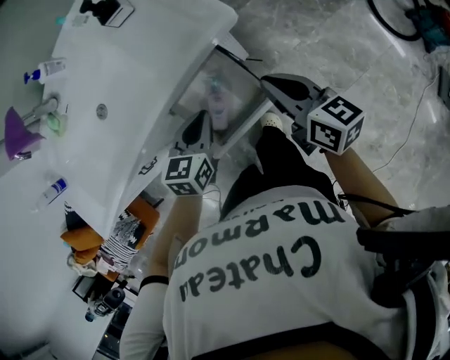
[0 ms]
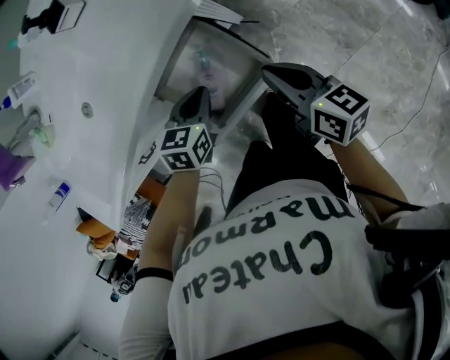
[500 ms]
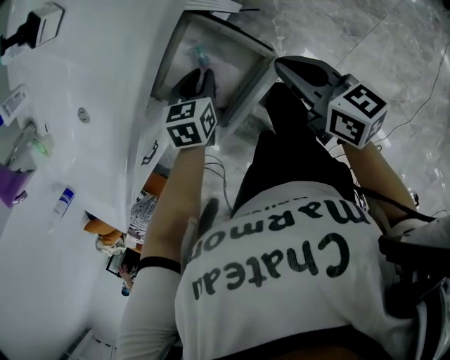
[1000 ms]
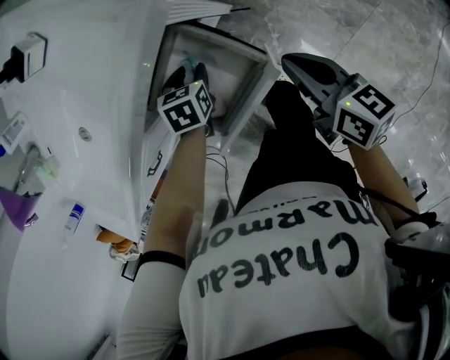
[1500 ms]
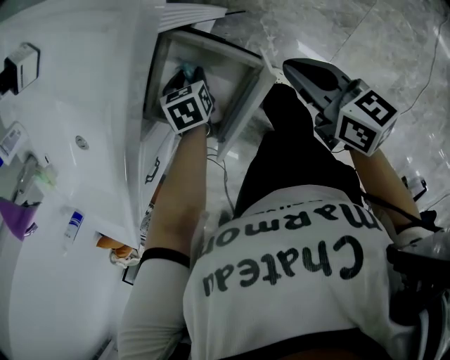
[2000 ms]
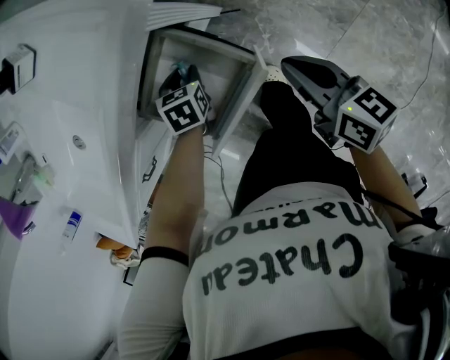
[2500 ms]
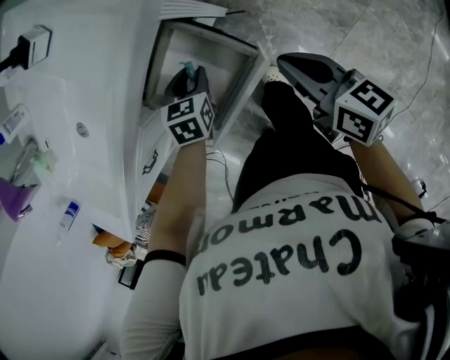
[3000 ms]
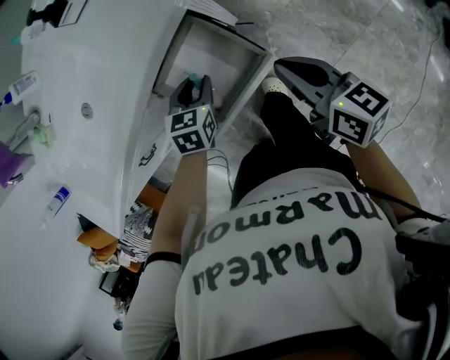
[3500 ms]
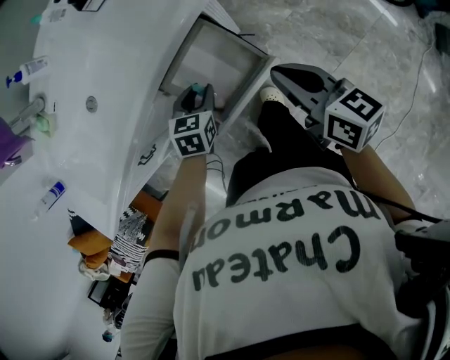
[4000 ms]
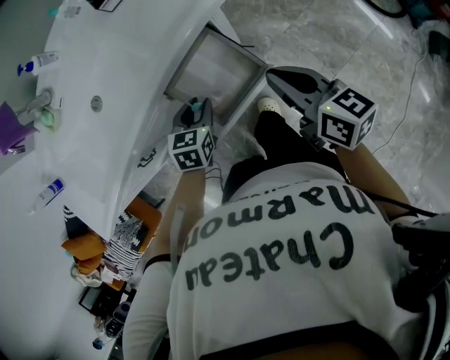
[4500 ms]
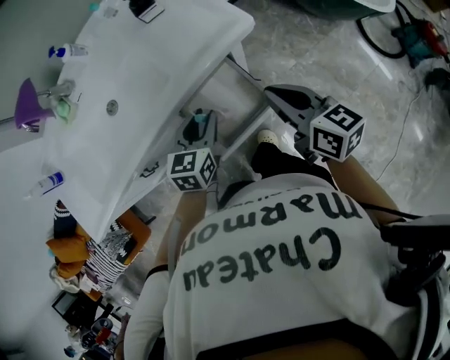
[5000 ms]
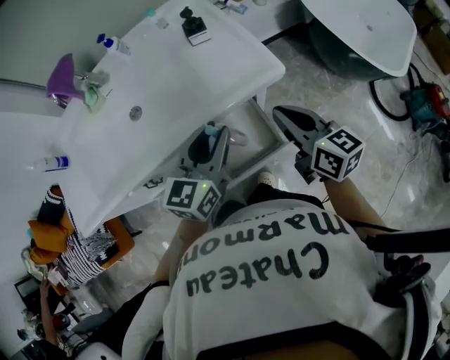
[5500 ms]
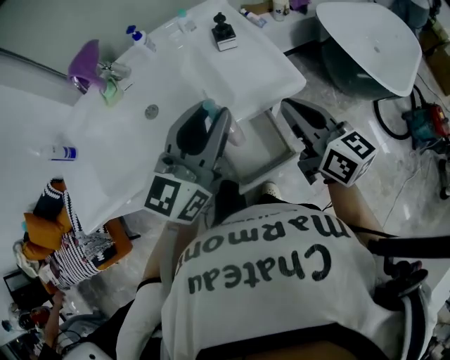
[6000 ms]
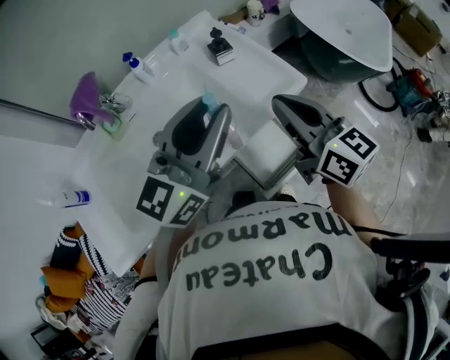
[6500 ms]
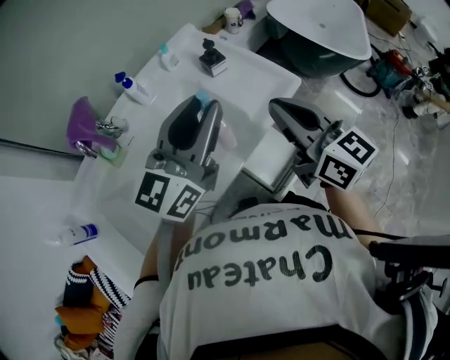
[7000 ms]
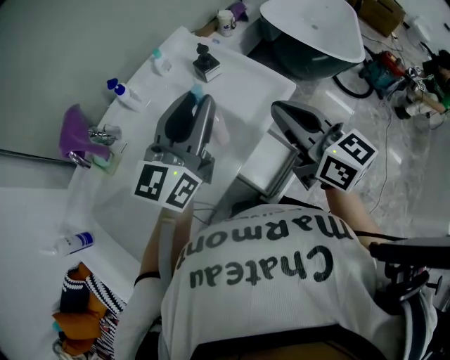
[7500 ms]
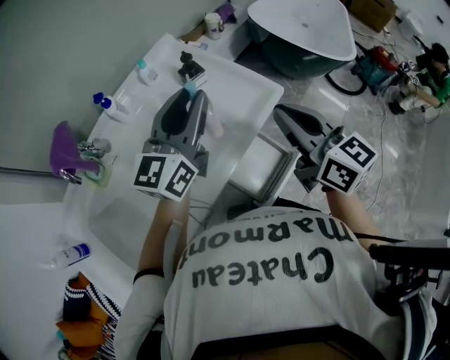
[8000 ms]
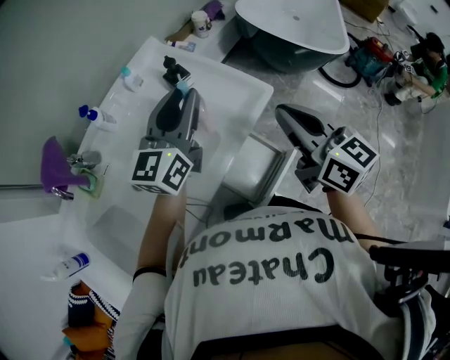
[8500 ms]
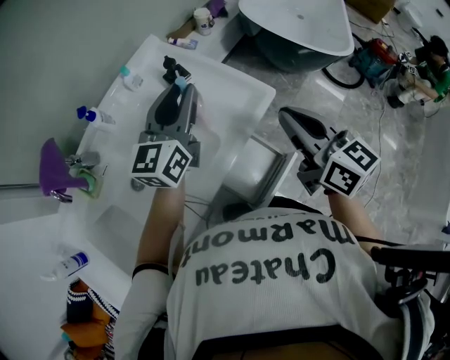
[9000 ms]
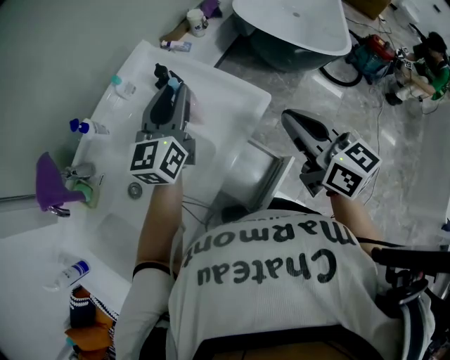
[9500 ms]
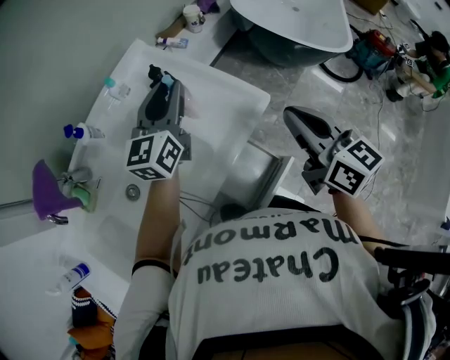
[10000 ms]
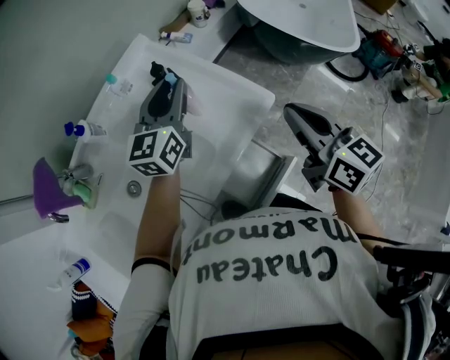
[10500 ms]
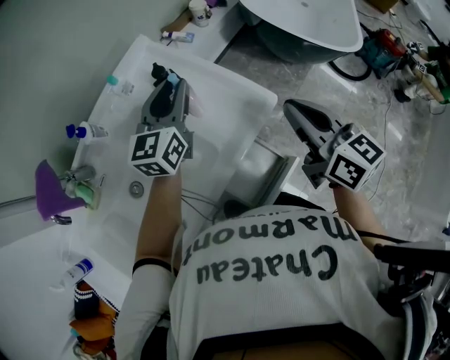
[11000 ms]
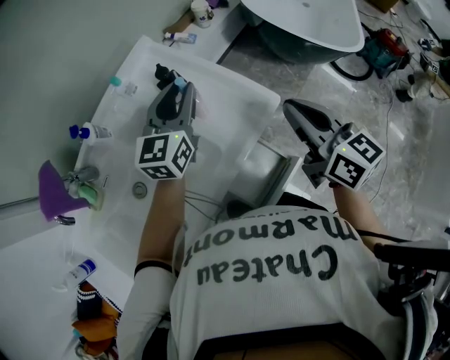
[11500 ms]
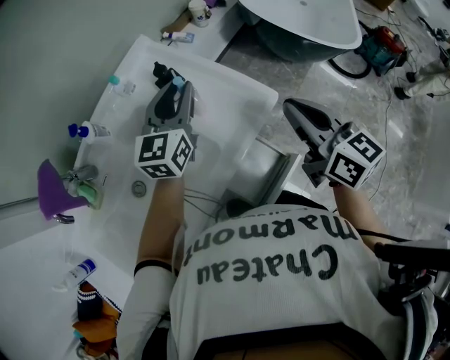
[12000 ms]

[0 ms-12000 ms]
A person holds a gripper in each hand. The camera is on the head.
0 ms to 2000 ms: The left gripper heads downward, covering some 20 cm, angles its fingers downward, by some 30 degrees, and opens; the right gripper moves downward and to the right, approximately 15 cm.
2000 ms to 4000 ms: The left gripper heads upward and backward, covering some 15 cm, and rotates roughly 20 degrees. Meanwhile the right gripper goes about 15 cm upward and to the left.
4000 ms to 6000 ms: The left gripper travels upward by about 40 cm, and tilts its fingers about 60 degrees upward. The right gripper heads upward, forward and to the left, covering some 20 cm, and turns by roughly 20 degrees.
6000 ms to 8000 ms: The right gripper heads upward, covering some 5 cm, and swivels some 20 degrees, while the left gripper shifts roughly 15 cm forward and to the left.
8000 ms to 10000 ms: The right gripper goes approximately 10 cm to the right and forward. Meanwhile the left gripper goes about 15 cm forward and downward.
10000 ms to 12000 ms: The grippers make only small movements.

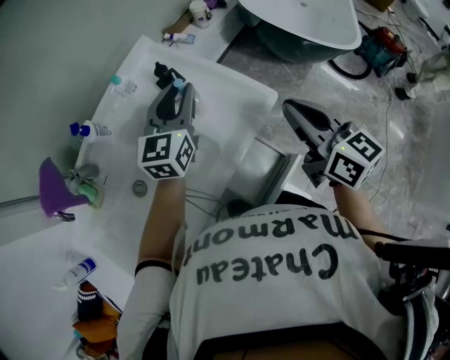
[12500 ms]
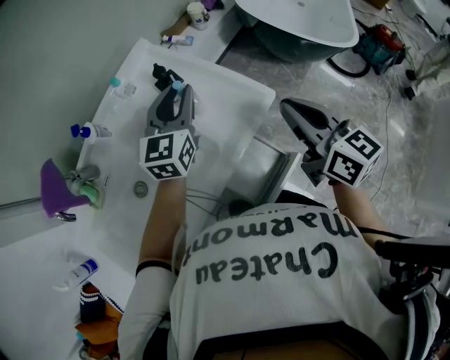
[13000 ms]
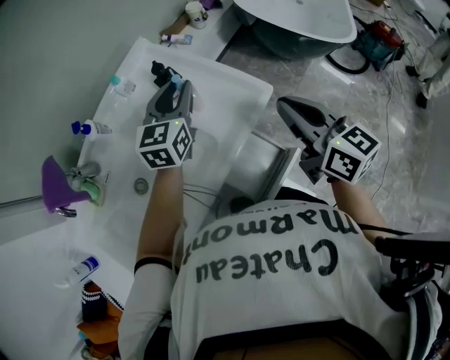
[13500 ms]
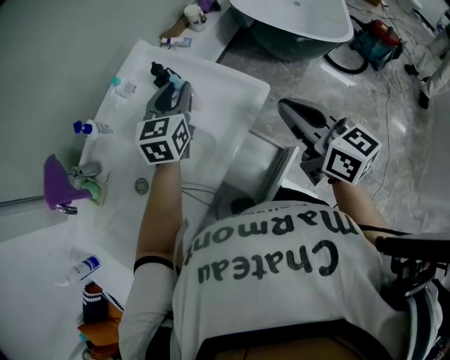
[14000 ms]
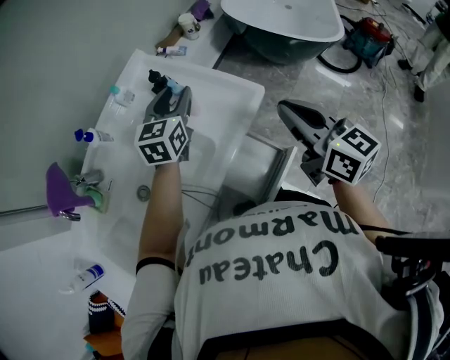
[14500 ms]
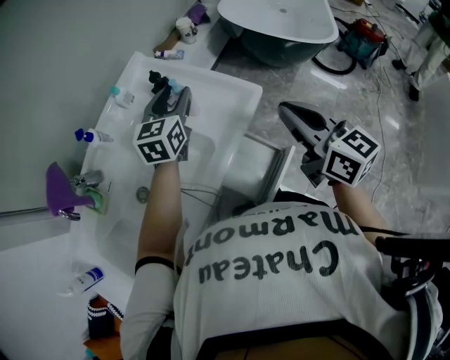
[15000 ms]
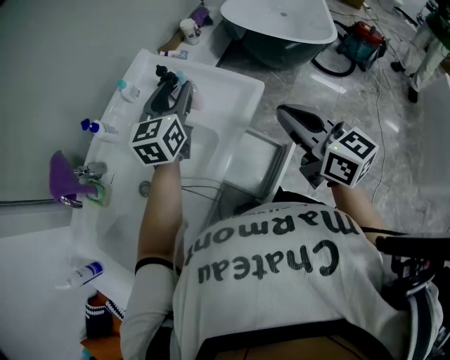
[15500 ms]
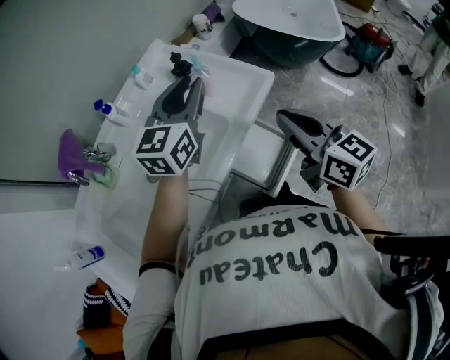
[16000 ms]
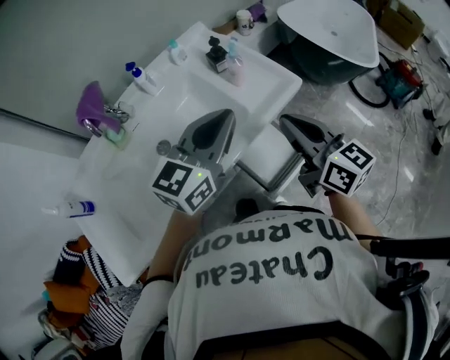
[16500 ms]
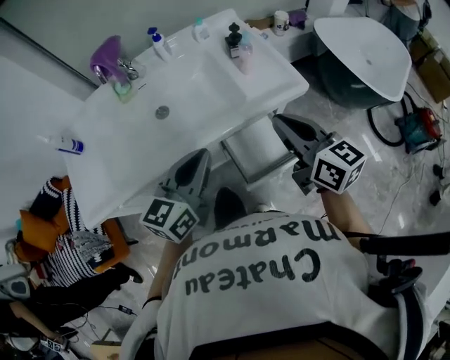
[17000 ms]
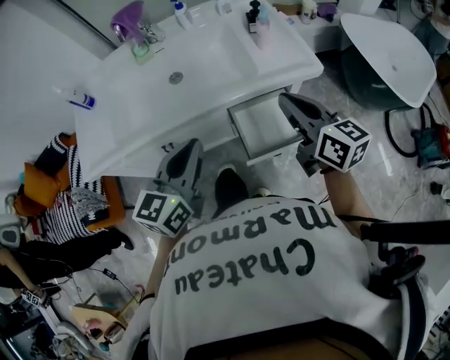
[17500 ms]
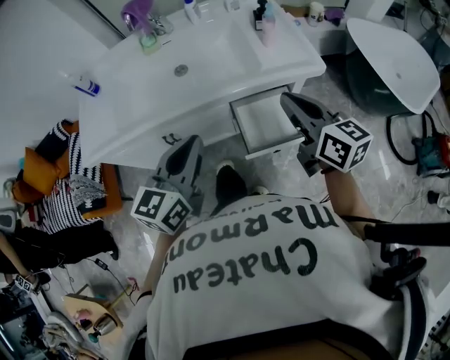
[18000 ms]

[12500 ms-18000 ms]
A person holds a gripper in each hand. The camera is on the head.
12500 ms to 14500 ms: The right gripper ends up roughly 5 cm from where it was.
14500 ms to 16000 ms: The right gripper is displaced backward and to the left by some 10 cm. The left gripper travels backward and upward by roughly 15 cm.
16000 ms to 18000 ms: The left gripper ends up about 35 cm from where it was, turns by some 40 degrees, and closes its fingers; the right gripper shifts by some 5 cm, and changes its angle by about 40 degrees.

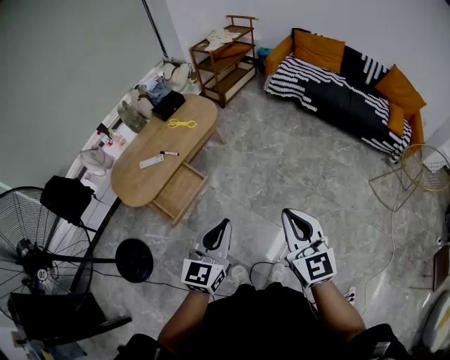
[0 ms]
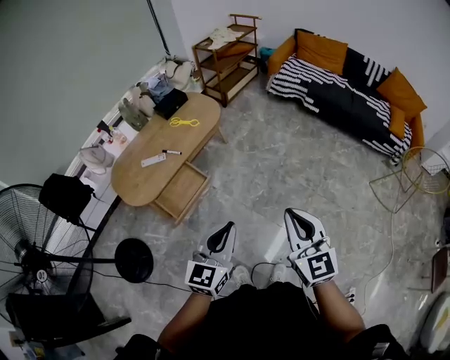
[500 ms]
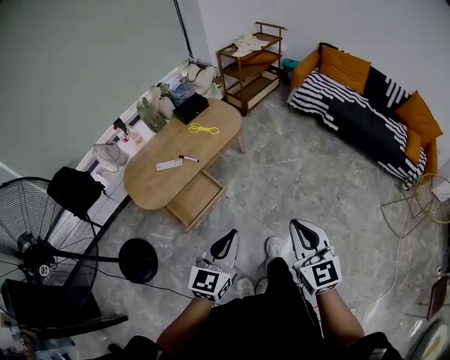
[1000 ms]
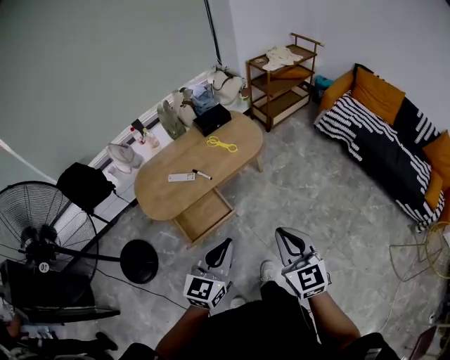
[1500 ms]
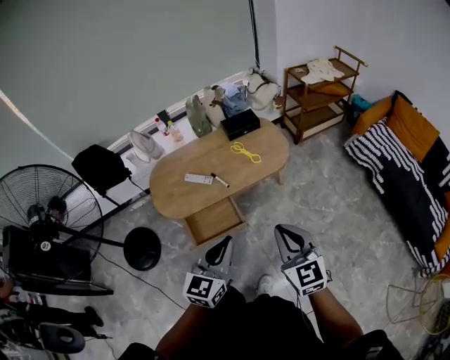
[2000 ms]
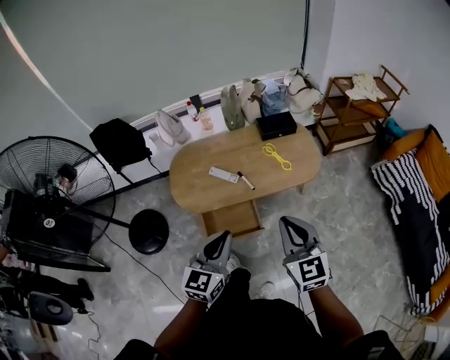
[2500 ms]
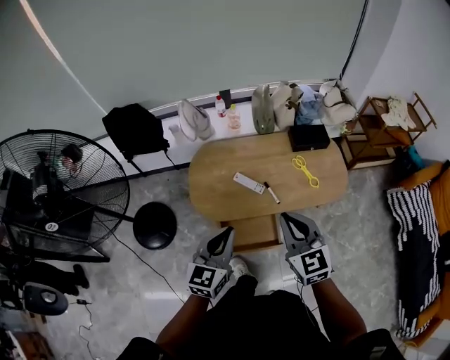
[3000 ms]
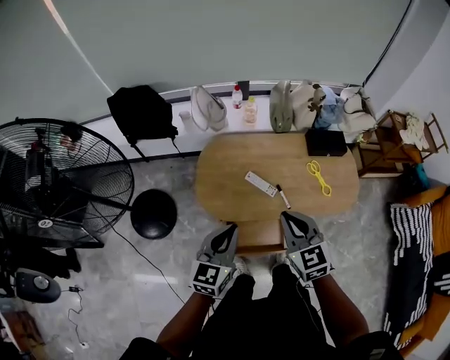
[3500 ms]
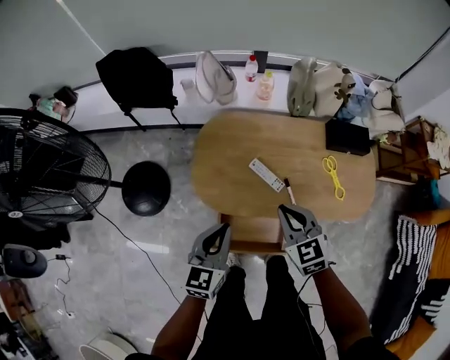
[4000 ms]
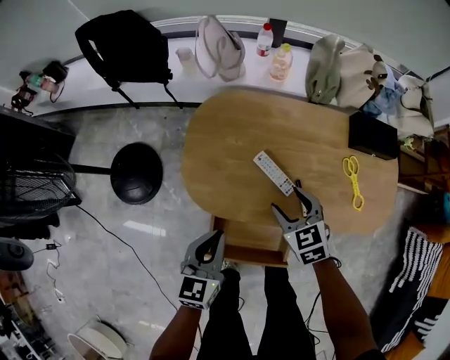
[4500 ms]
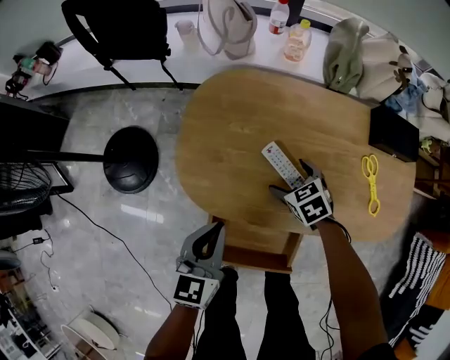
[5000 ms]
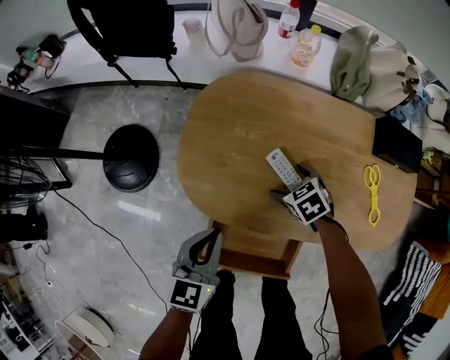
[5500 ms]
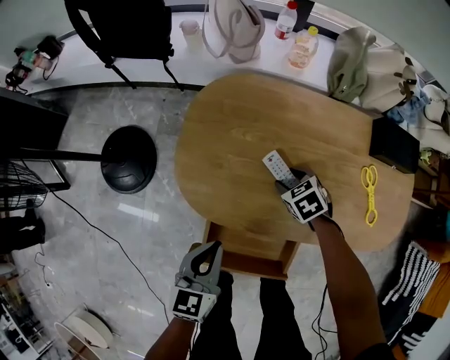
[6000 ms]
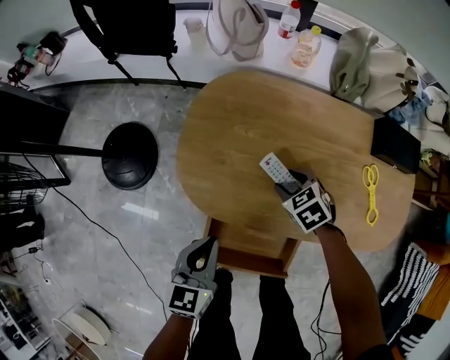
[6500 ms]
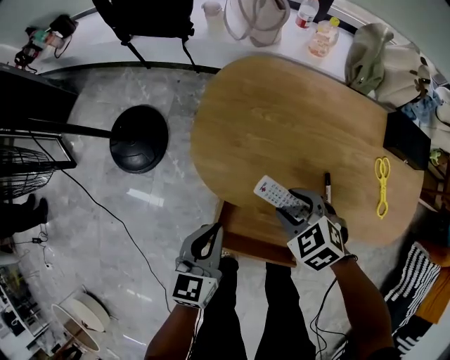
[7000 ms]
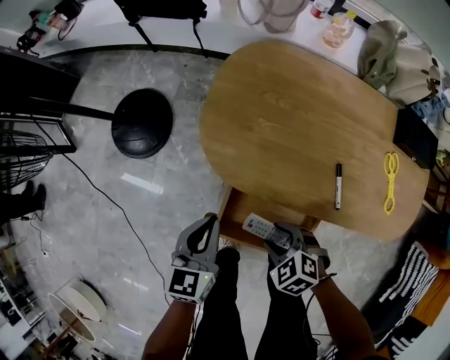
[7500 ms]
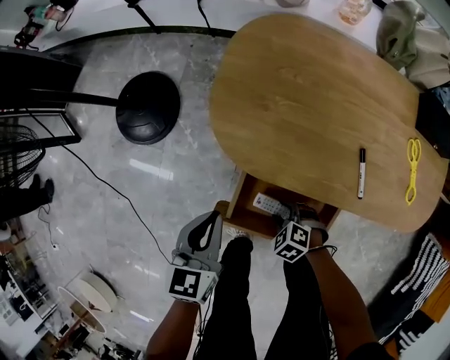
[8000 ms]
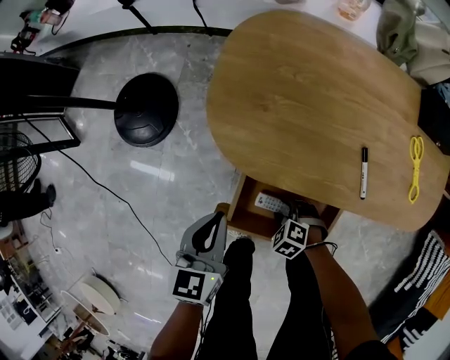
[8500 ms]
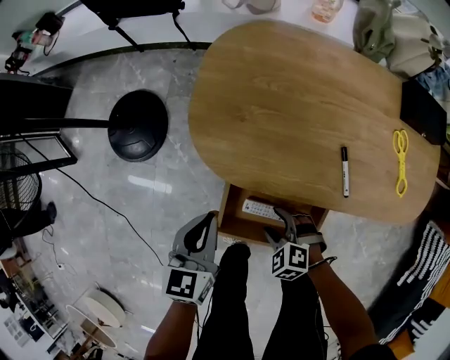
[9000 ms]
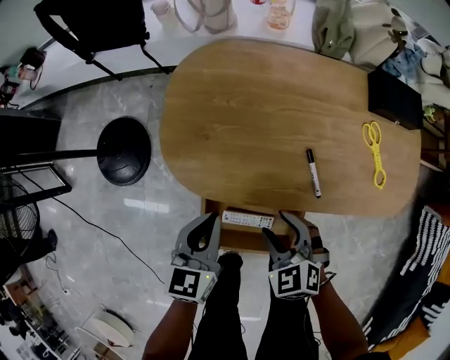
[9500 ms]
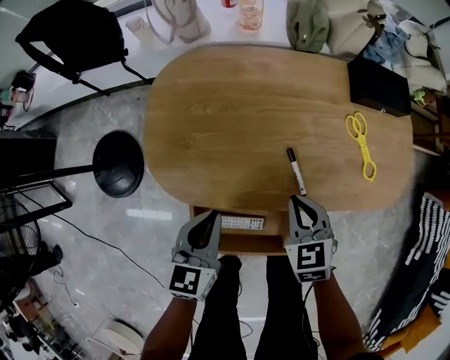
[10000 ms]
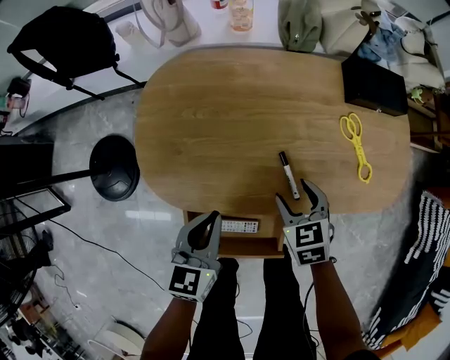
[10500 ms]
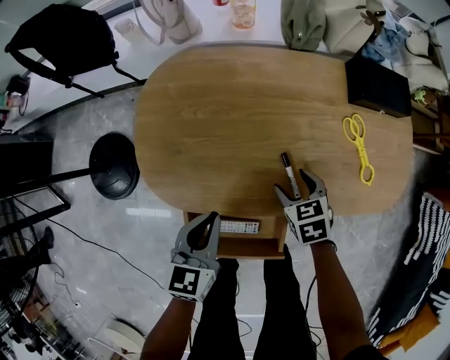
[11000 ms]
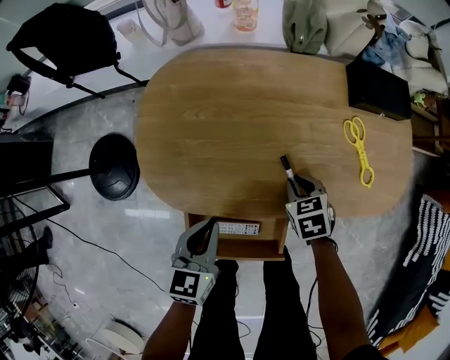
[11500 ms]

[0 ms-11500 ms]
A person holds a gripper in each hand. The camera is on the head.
0 ms to 2000 ms: The right gripper changes place by approximately 35 cm, and swivels approximately 30 degrees. The left gripper moves about 30 cm, and rotates about 30 degrees.
2000 ms to 4000 ms: Both grippers are carried approximately 50 cm. The left gripper swivels approximately 30 degrees. Meanwhile the right gripper turns by approximately 40 degrees.
4000 ms to 6000 ms: The left gripper heads downward, covering approximately 20 cm. The right gripper is displaced downward and forward by some 40 cm, tilts its fingers about 30 degrees downward, and opens its fingers.
6000 ms to 7500 ms: The right gripper shifts approximately 25 cm backward and to the left, and turns by some 30 degrees. The left gripper moves to the left, roughly 10 cm.
7500 ms to 9500 ms: The left gripper changes place by some 10 cm. Meanwhile the right gripper goes downward and returns, some 20 cm each way, and changes its angle by approximately 30 degrees.
9500 ms to 11500 ms: The left gripper shifts some 5 cm to the right; the right gripper travels to the right, forward and downward by some 20 cm, changes its angle by roughly 30 degrees, and closes its fingers.
